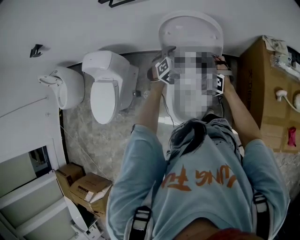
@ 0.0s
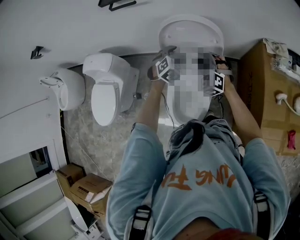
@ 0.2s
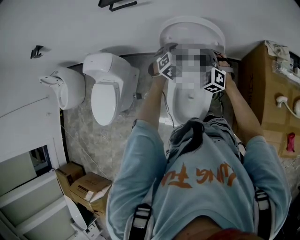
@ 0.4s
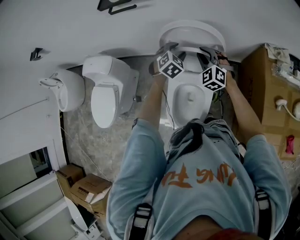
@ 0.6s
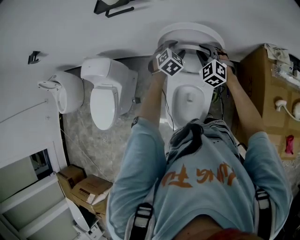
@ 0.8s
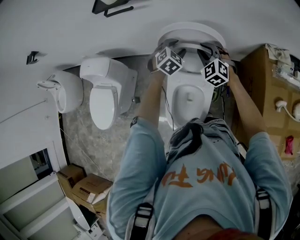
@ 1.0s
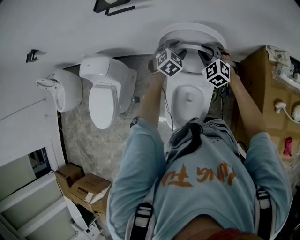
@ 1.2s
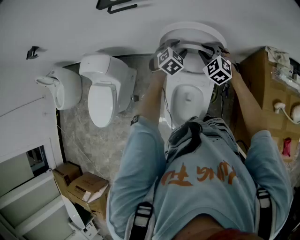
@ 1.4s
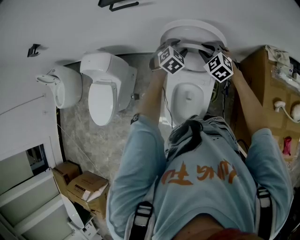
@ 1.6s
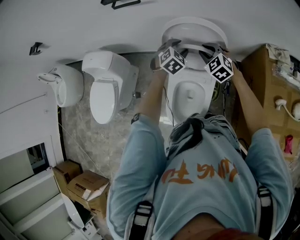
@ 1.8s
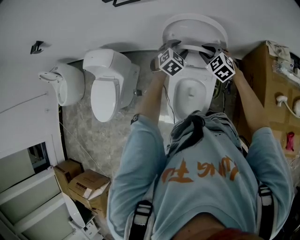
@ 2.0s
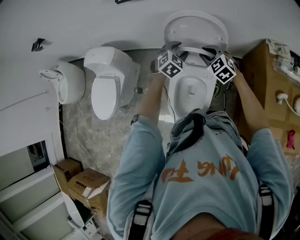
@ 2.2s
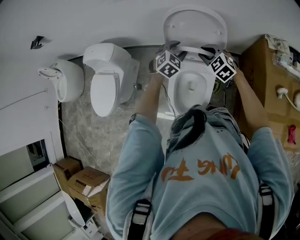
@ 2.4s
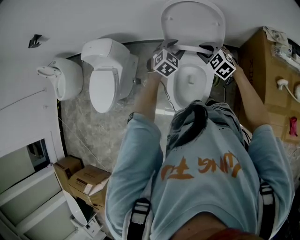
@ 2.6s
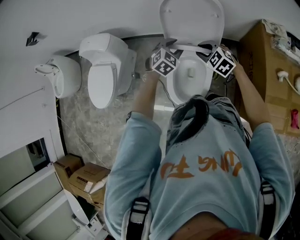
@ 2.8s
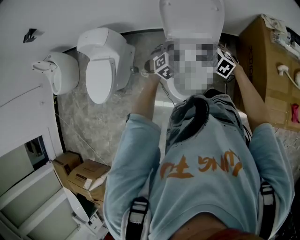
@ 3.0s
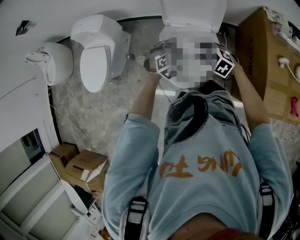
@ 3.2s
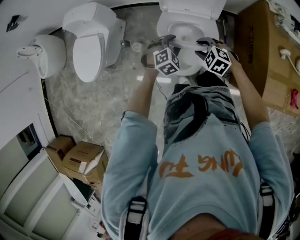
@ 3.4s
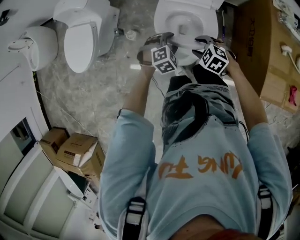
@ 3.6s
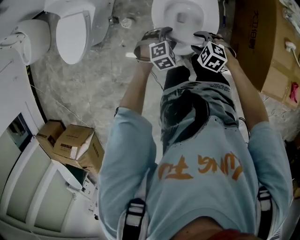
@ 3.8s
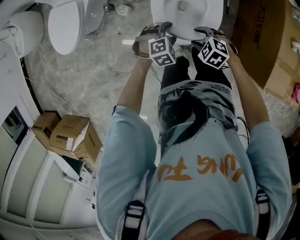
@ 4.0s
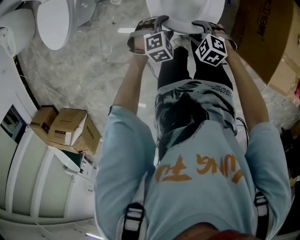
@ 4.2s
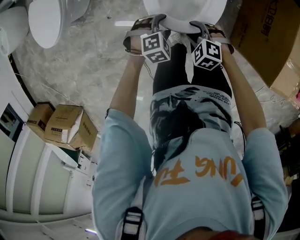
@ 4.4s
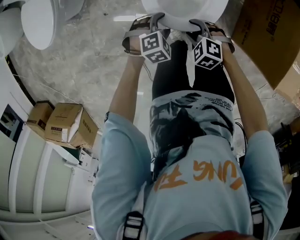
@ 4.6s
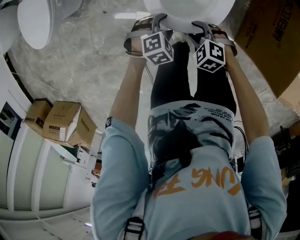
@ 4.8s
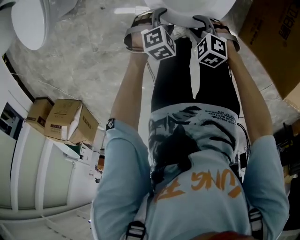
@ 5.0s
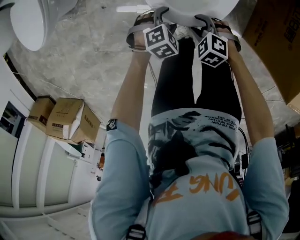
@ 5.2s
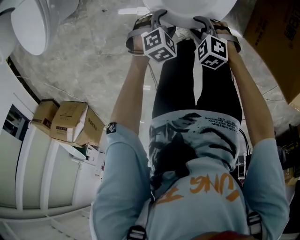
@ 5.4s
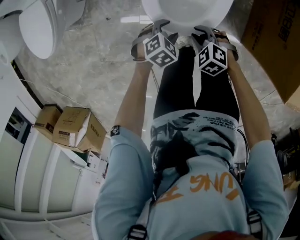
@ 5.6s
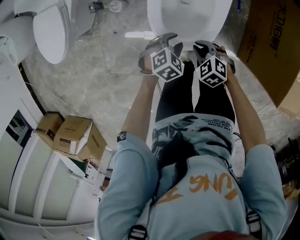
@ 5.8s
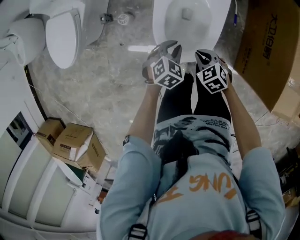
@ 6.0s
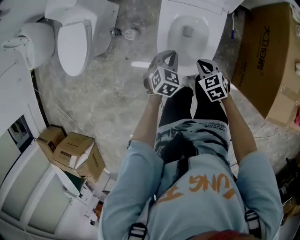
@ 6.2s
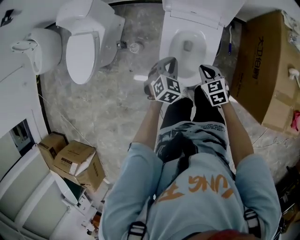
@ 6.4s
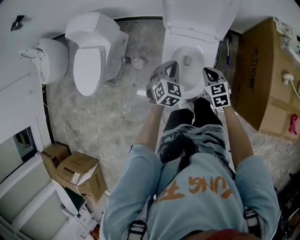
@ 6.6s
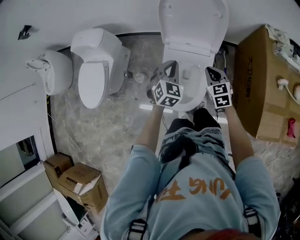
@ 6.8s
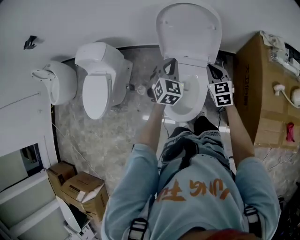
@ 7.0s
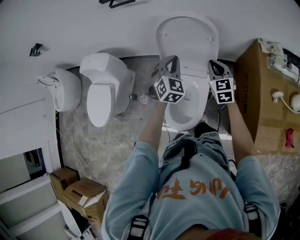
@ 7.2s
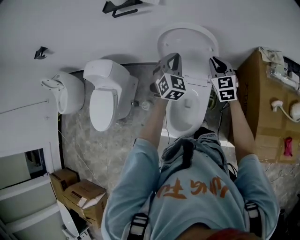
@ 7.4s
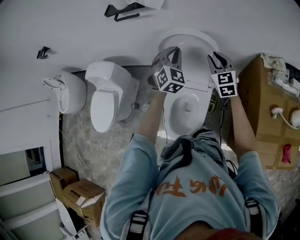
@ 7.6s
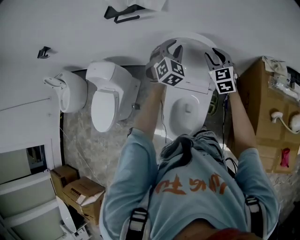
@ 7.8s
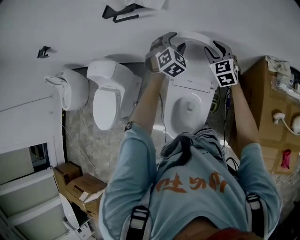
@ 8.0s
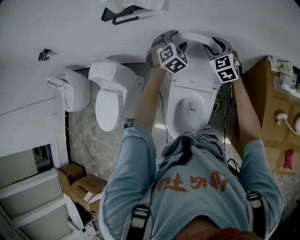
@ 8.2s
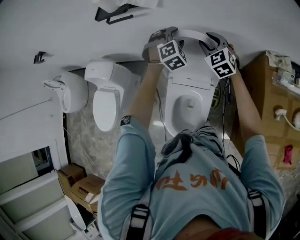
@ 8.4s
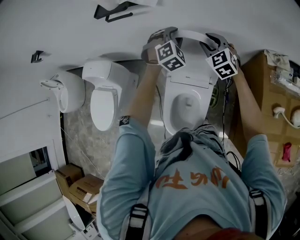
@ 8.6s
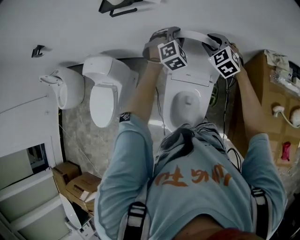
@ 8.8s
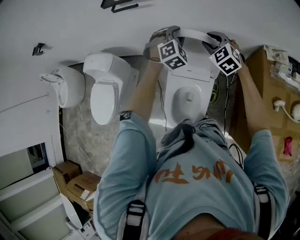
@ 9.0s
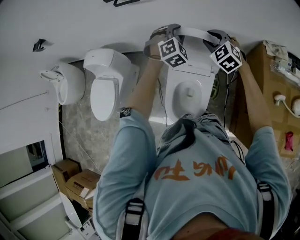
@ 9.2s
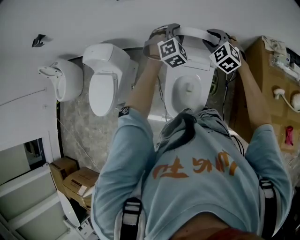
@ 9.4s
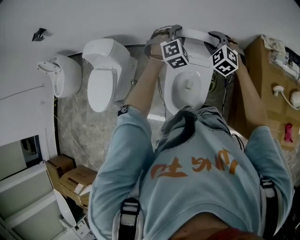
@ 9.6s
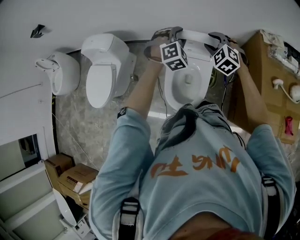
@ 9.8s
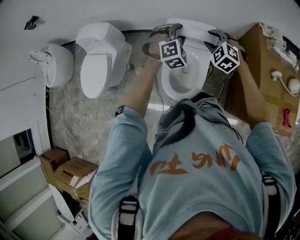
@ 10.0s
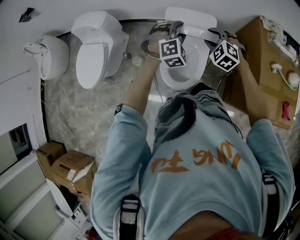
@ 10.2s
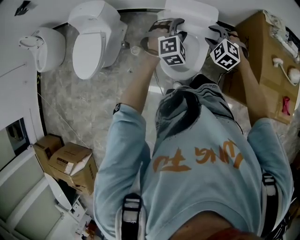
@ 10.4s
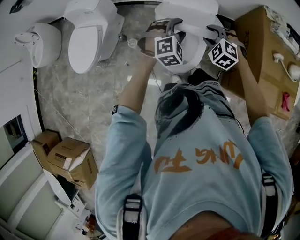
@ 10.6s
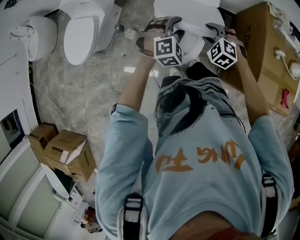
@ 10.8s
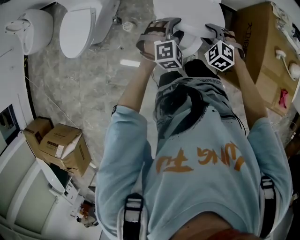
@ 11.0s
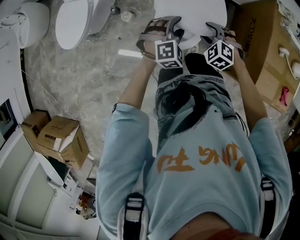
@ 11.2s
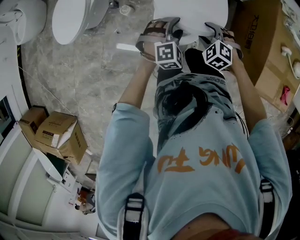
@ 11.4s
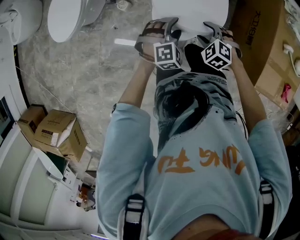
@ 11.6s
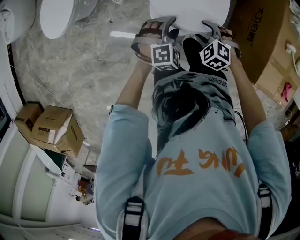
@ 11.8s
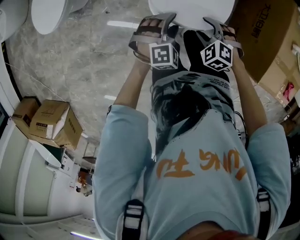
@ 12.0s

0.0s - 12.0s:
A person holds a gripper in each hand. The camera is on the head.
0.0s - 1.6s: The two grippers go roughly 10 cm forward. The right gripper changes its angle by approximately 20 degrees.
1.6s - 3.0s: The grippers both shift backward by approximately 25 cm.
3.0s - 4.4s: Both grippers move downward and backward, some 35 cm. The right gripper turns by approximately 20 degrees. Meanwhile the left gripper turns by roughly 20 degrees, and opens.
4.4s - 6.0s: The left gripper travels downward and back again, about 15 cm each way, swivels roughly 30 degrees, and closes, while the right gripper travels downward and back again, some 15 cm each way, rotates about 30 degrees, and closes up.
6.0s - 7.6s: The right gripper heads upward, forward and to the right, covering some 60 cm, and tips its fingers upward by roughly 40 degrees; the left gripper heads upward and forward, covering approximately 60 cm, and tips its fingers upward by roughly 30 degrees.
7.6s - 9.0s: The right gripper changes its angle by some 30 degrees. The left gripper is displaced forward by roughly 5 cm, and turns by about 20 degrees.
9.0s - 10.4s: The two grippers go approximately 30 cm backward. The right gripper swivels roughly 20 degrees.
10.4s - 12.0s: The two grippers go approximately 25 cm downward and backward.

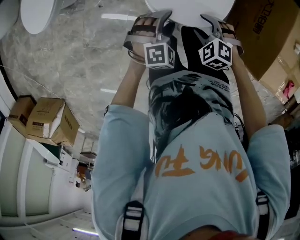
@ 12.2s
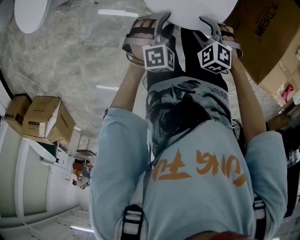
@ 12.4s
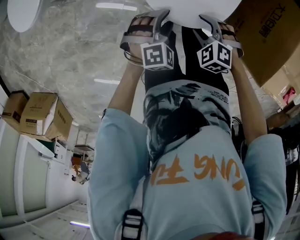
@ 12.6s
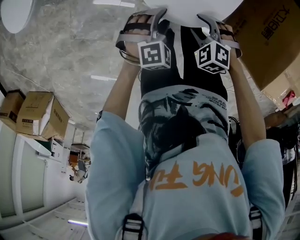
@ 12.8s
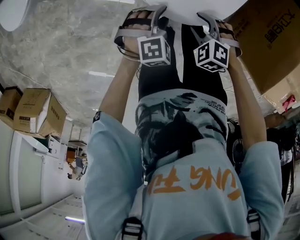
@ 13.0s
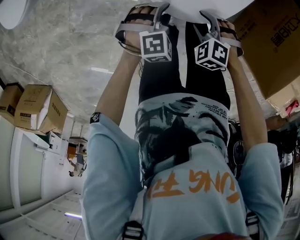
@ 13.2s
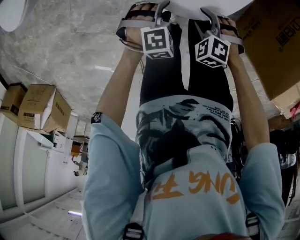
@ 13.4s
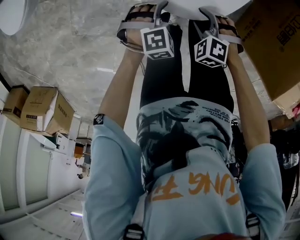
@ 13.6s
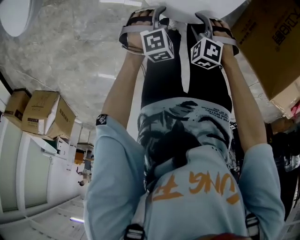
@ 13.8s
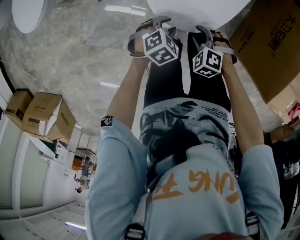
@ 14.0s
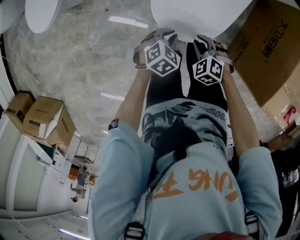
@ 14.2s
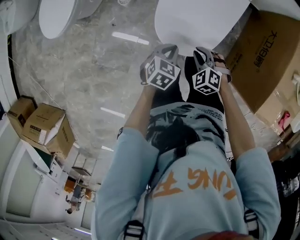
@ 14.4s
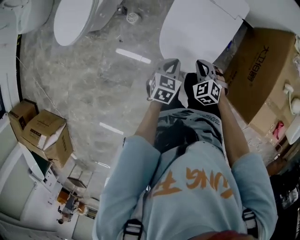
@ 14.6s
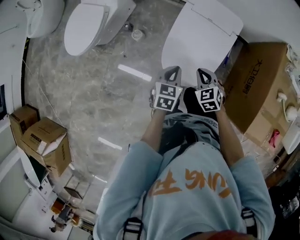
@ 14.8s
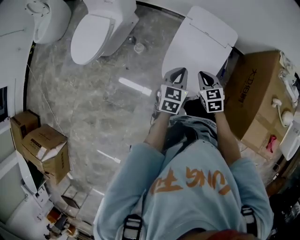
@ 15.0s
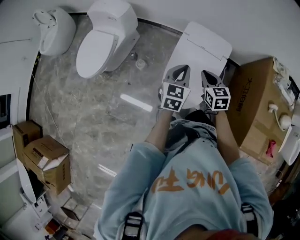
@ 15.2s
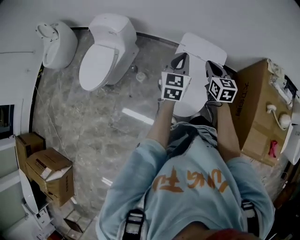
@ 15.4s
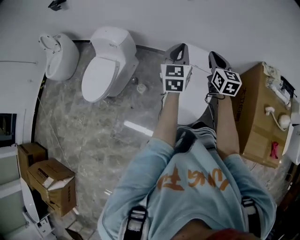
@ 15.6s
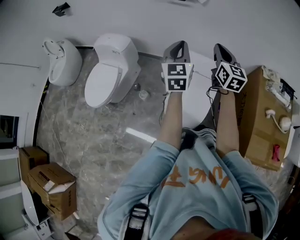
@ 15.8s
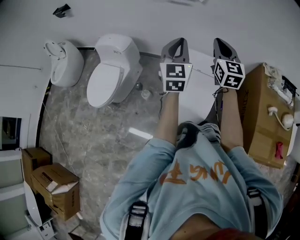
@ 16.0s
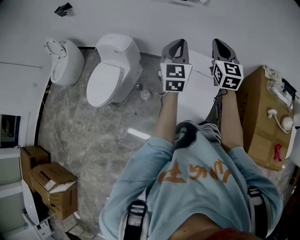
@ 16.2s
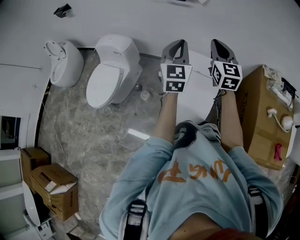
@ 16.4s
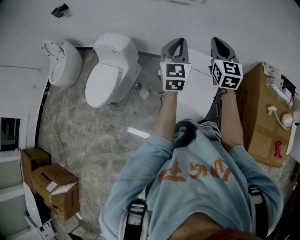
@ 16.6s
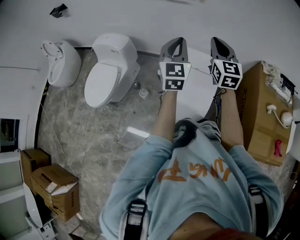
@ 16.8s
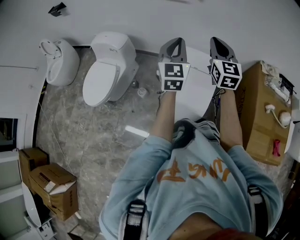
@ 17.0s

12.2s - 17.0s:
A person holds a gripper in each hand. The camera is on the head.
12.2s - 13.8s: The grippers both shift downward by some 20 cm. The left gripper swivels about 20 degrees.
13.8s - 15.4s: Both grippers travel together upward and forward, roughly 60 cm. The left gripper tilts its fingers roughly 60 degrees upward, and closes its fingers, while the right gripper tilts its fingers roughly 50 degrees upward, and closes up.
15.4s - 17.0s: The right gripper heads upward, covering approximately 20 cm, and turns by some 30 degrees. Meanwhile the left gripper moves upward, about 10 cm.

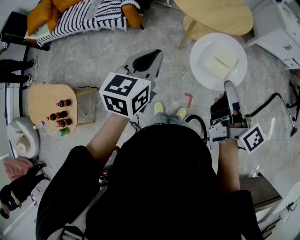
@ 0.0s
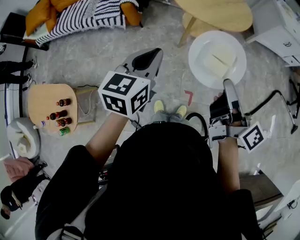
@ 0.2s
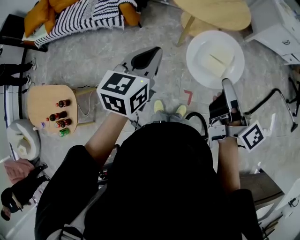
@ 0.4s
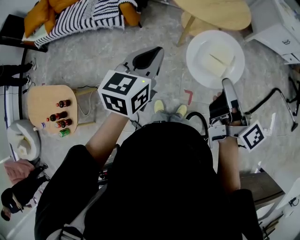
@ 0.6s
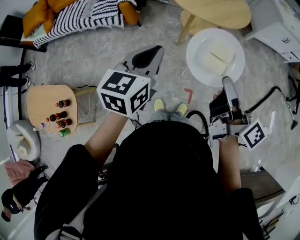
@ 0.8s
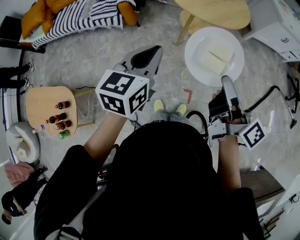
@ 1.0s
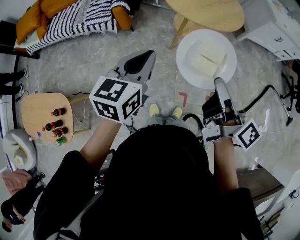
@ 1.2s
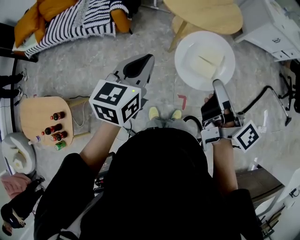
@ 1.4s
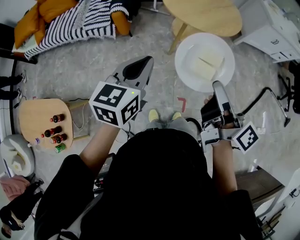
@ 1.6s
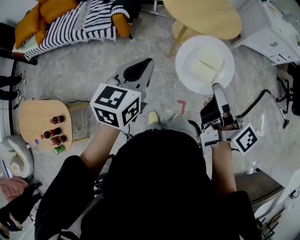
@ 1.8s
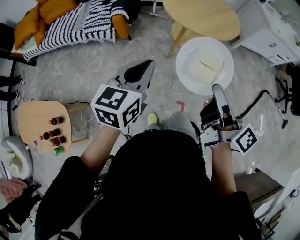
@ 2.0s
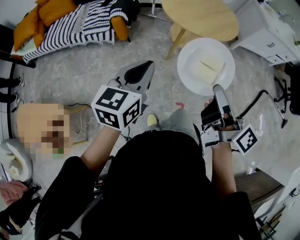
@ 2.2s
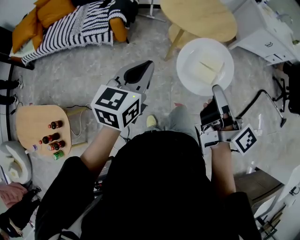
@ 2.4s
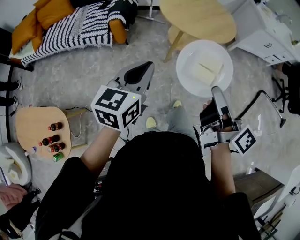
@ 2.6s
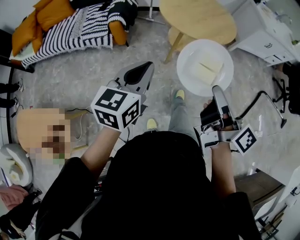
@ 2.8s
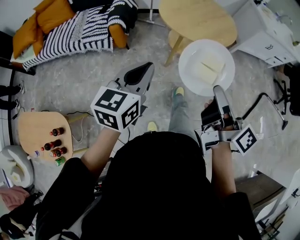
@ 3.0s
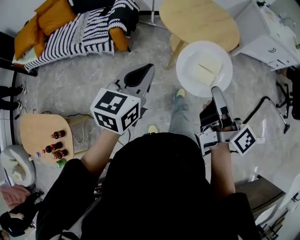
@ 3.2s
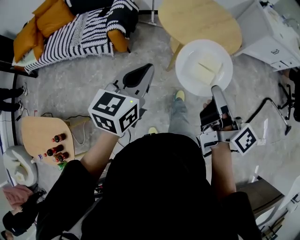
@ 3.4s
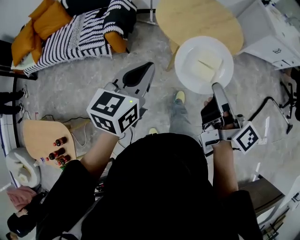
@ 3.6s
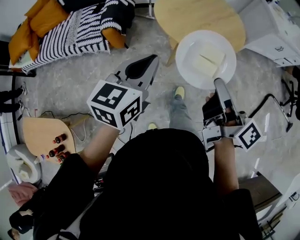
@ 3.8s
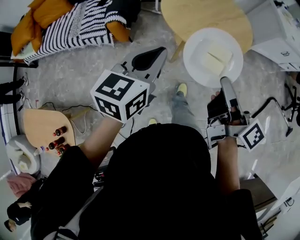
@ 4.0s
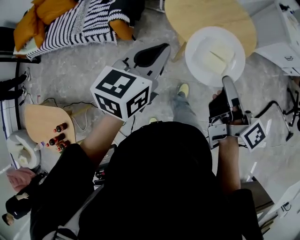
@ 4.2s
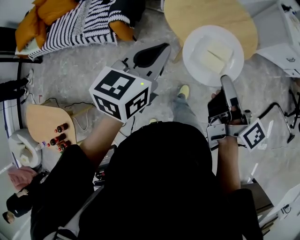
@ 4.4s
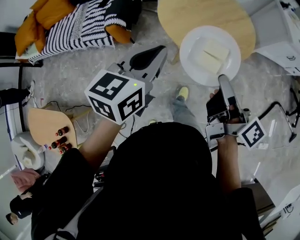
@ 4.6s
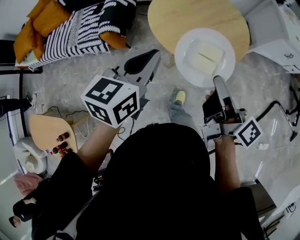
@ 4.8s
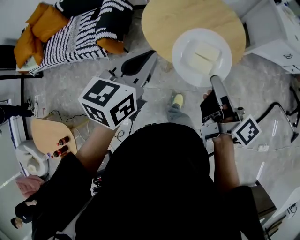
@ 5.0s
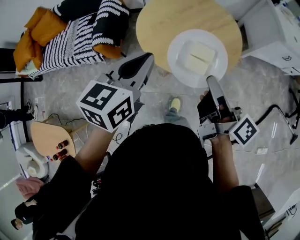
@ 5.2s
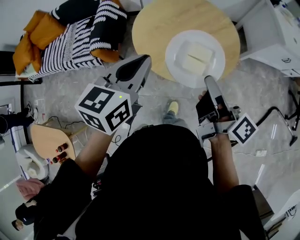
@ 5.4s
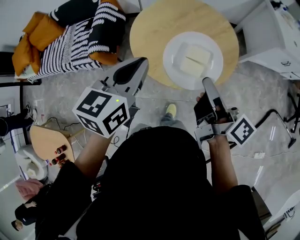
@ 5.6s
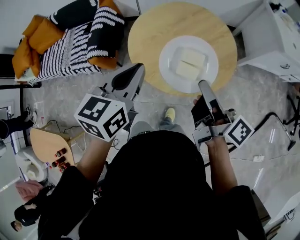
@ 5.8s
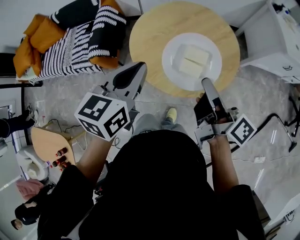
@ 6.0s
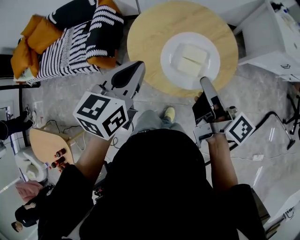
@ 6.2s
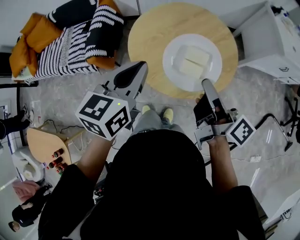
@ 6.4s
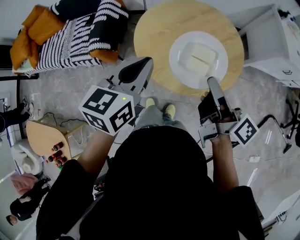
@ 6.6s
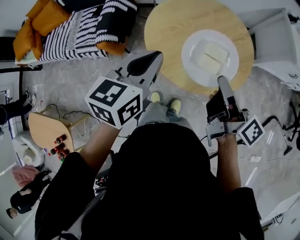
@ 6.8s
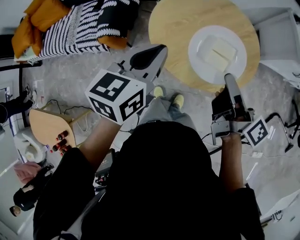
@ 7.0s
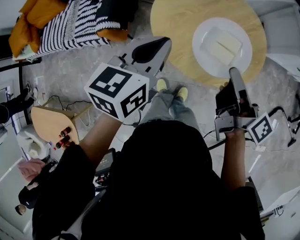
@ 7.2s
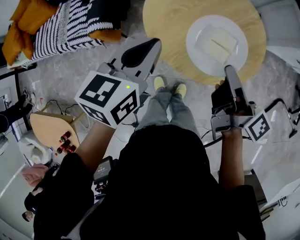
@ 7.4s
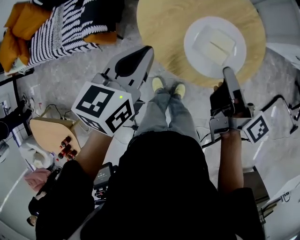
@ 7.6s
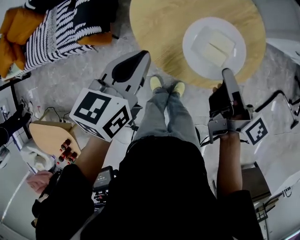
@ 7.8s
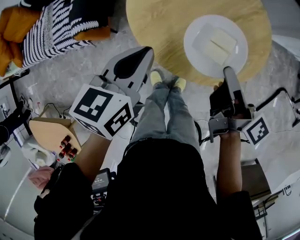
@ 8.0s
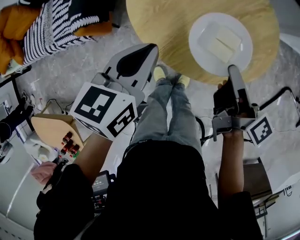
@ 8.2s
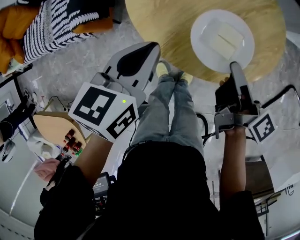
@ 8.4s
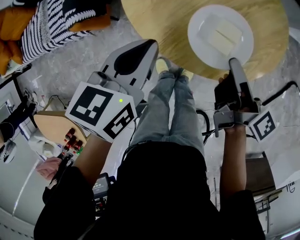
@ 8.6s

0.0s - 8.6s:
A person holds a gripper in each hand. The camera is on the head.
0.0s - 1.4s: The grippers stay close to where they were, moving slightly.
1.4s - 2.8s: The grippers move only a little.
2.8s - 4.4s: Both grippers travel together forward, roughly 20 cm.
4.4s - 5.8s: Both grippers move forward and to the right, some 25 cm.
5.8s - 7.2s: The grippers move only a little.
7.2s - 8.6s: The two grippers go roughly 15 cm downward.
